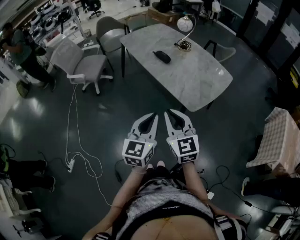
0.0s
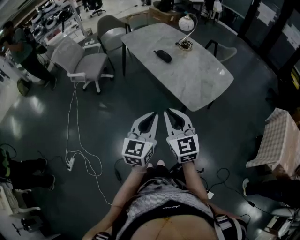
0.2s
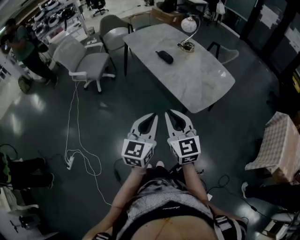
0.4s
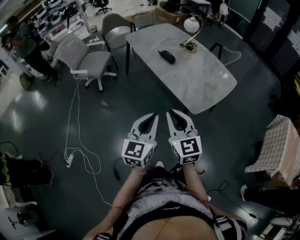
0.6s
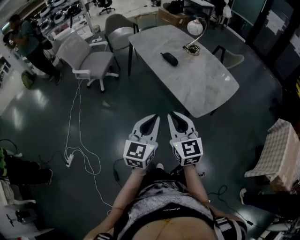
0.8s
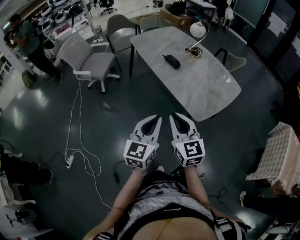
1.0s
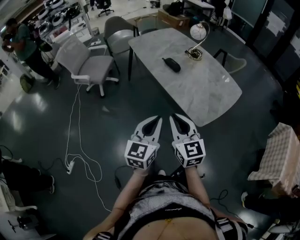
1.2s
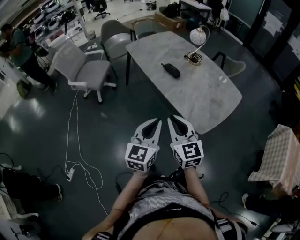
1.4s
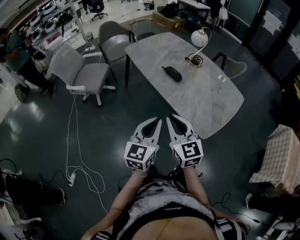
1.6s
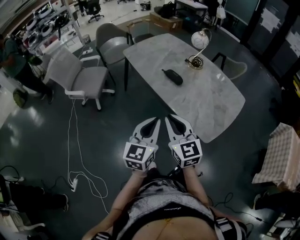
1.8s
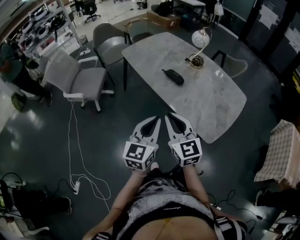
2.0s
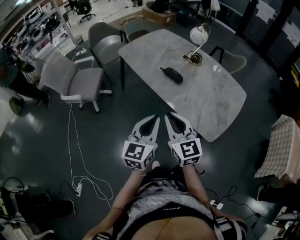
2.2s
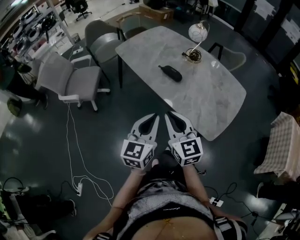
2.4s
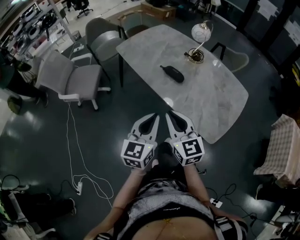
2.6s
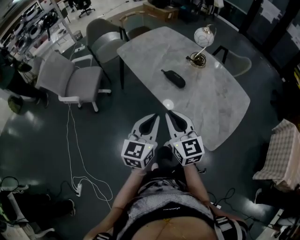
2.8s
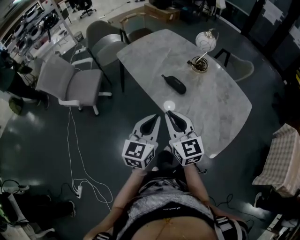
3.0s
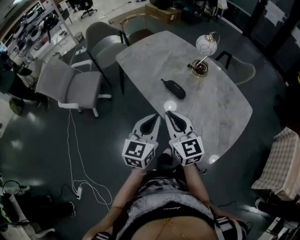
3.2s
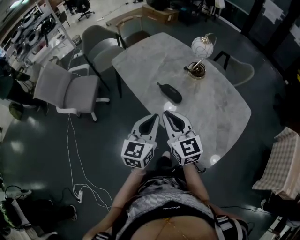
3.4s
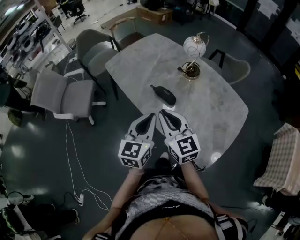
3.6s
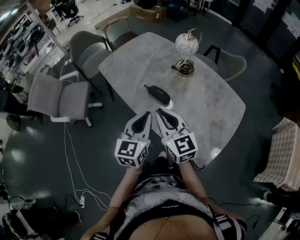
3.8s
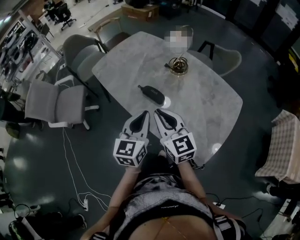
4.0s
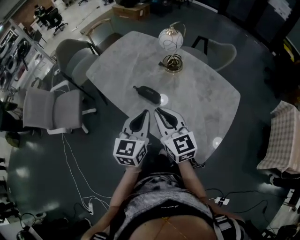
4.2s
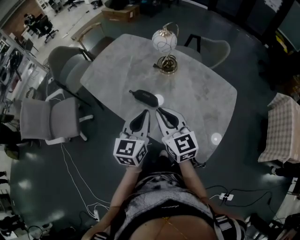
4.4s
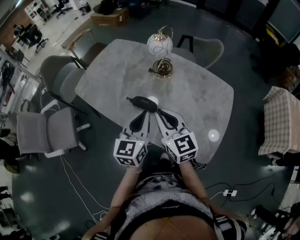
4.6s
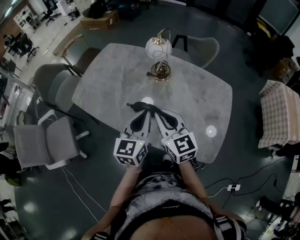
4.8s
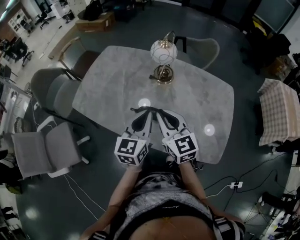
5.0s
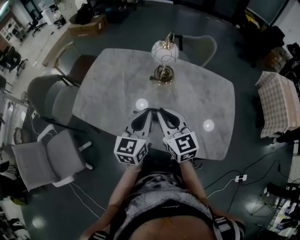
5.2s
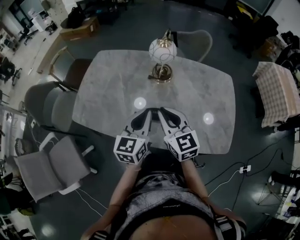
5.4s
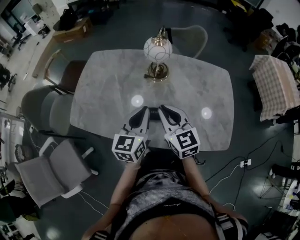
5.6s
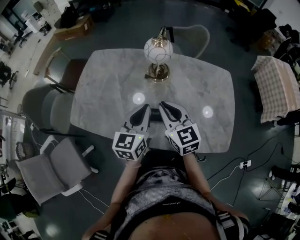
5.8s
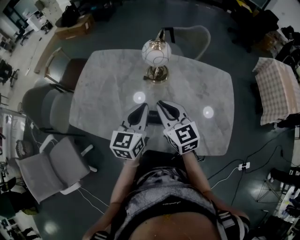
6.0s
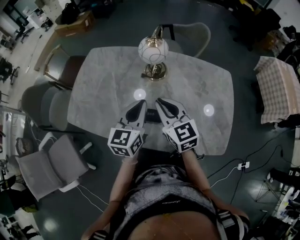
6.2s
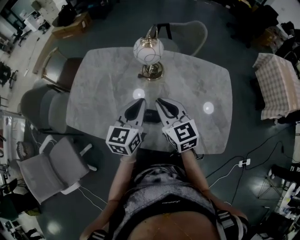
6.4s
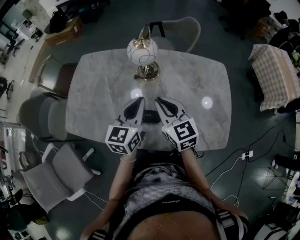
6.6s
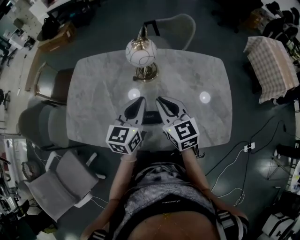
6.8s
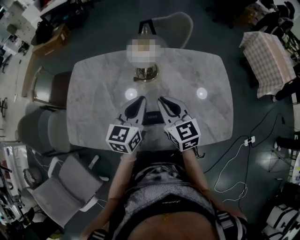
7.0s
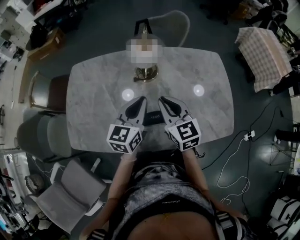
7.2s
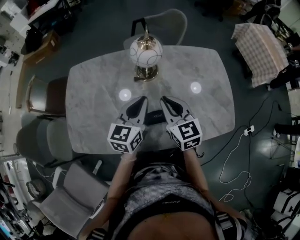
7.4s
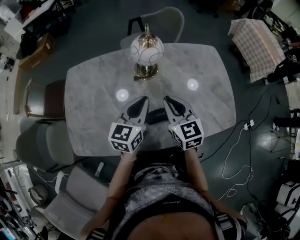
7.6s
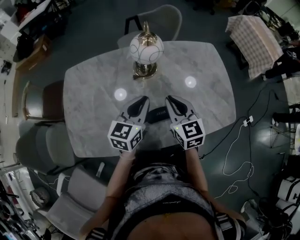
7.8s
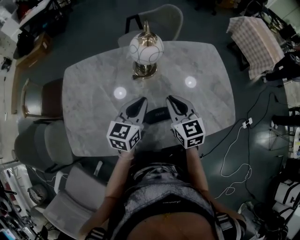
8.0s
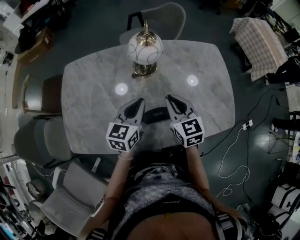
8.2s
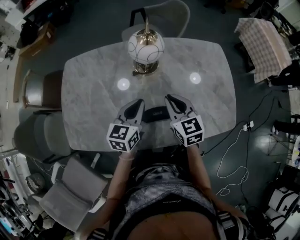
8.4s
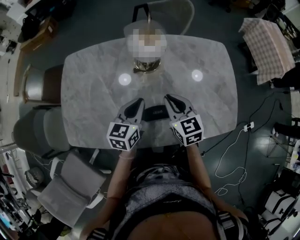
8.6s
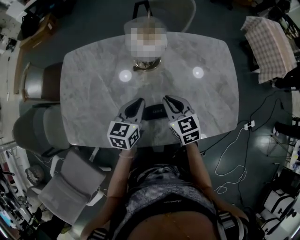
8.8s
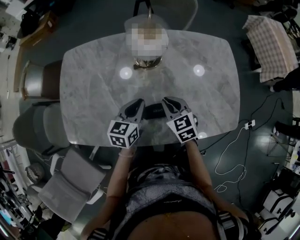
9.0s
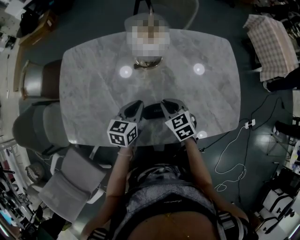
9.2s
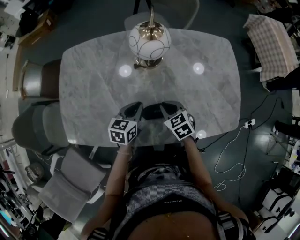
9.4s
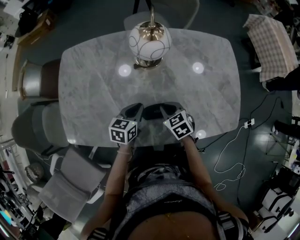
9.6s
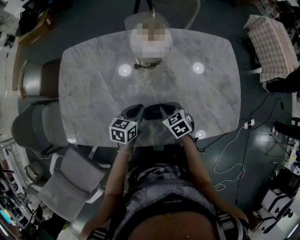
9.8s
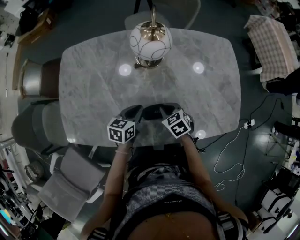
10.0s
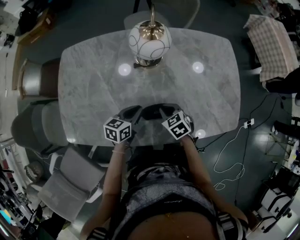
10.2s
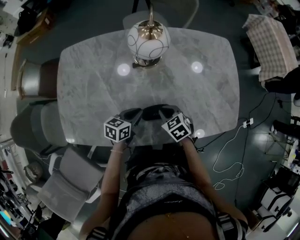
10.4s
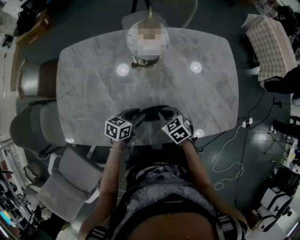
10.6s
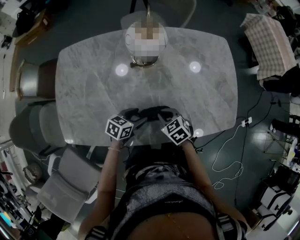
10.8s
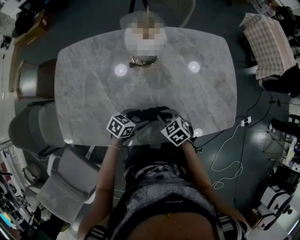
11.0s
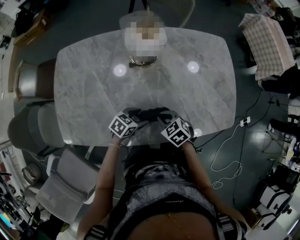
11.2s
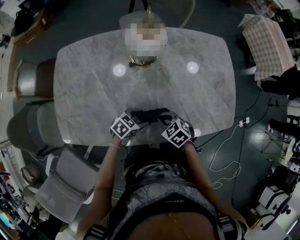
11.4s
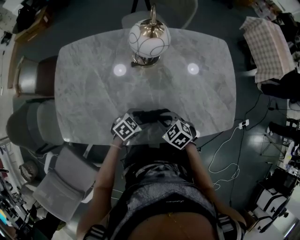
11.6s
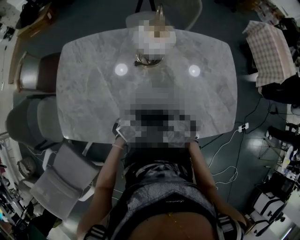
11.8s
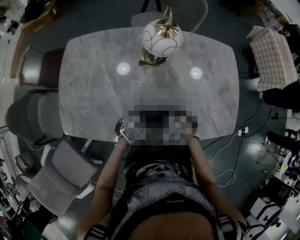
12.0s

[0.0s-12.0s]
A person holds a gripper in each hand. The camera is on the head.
0.0s to 1.6s: The two grippers go roughly 15 cm forward.
1.6s to 3.0s: The two grippers go roughly 20 cm forward.
3.0s to 4.4s: The two grippers go approximately 20 cm forward and to the right.
4.4s to 6.0s: The right gripper moves some 15 cm, and swivels some 20 degrees. The left gripper shifts by some 20 cm, and swivels roughly 30 degrees.
6.0s to 7.6s: The left gripper moves approximately 10 cm, and swivels approximately 30 degrees. The right gripper ends up some 5 cm from where it was, and turns by roughly 30 degrees.
7.6s to 9.0s: Both grippers move downward, about 10 cm. The right gripper rotates approximately 20 degrees.
9.0s to 10.4s: The grippers both shift downward by roughly 10 cm. The left gripper turns by approximately 20 degrees.
10.4s to 12.0s: The left gripper moves approximately 10 cm, turns by approximately 40 degrees, and opens its fingers; the right gripper moves roughly 5 cm, swivels about 40 degrees, and opens.

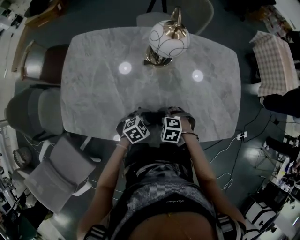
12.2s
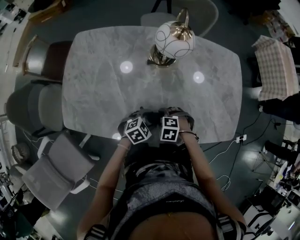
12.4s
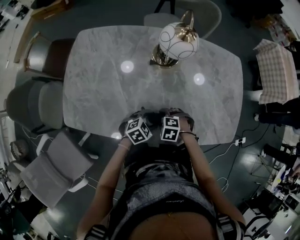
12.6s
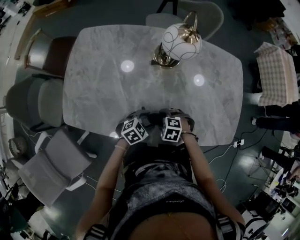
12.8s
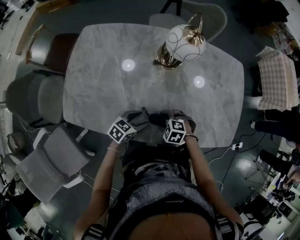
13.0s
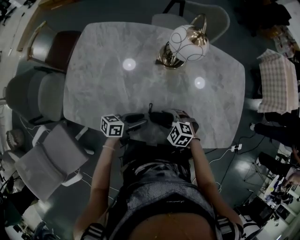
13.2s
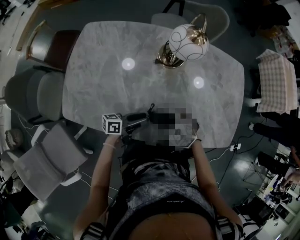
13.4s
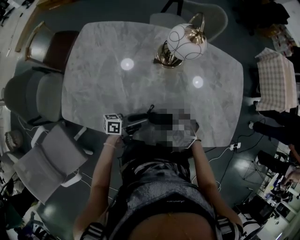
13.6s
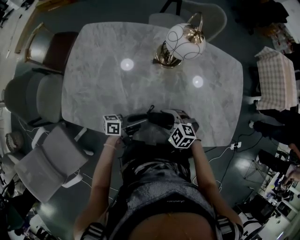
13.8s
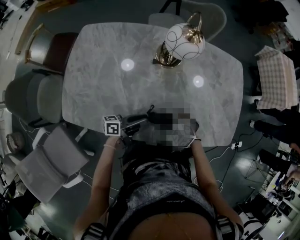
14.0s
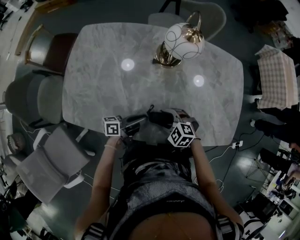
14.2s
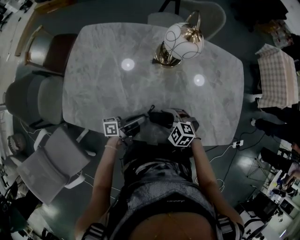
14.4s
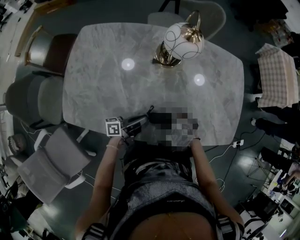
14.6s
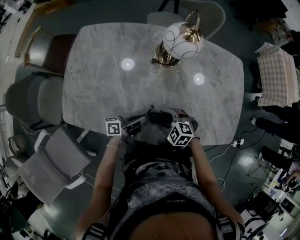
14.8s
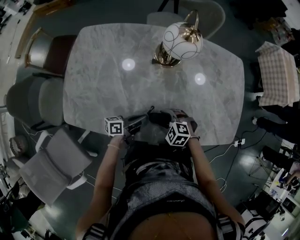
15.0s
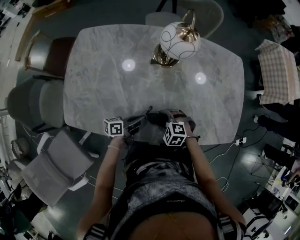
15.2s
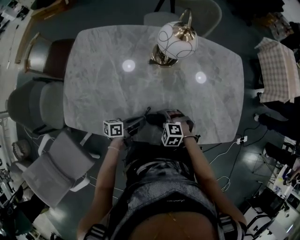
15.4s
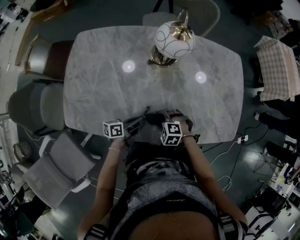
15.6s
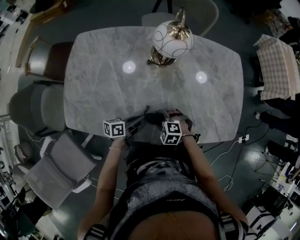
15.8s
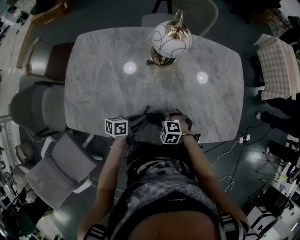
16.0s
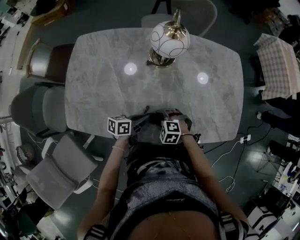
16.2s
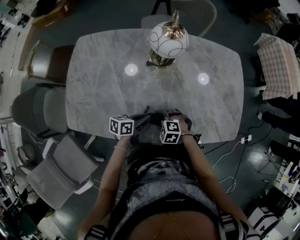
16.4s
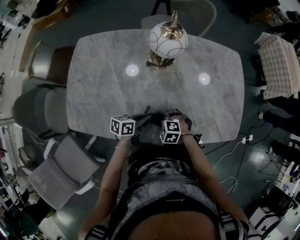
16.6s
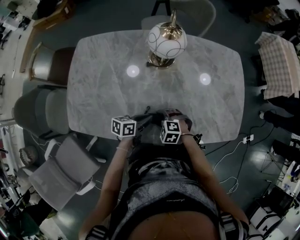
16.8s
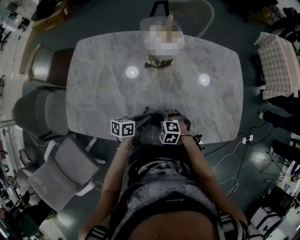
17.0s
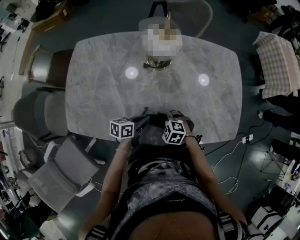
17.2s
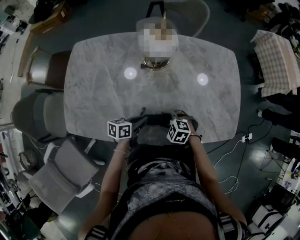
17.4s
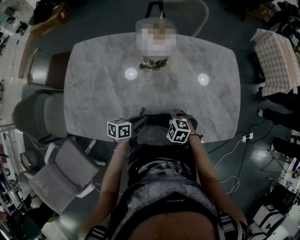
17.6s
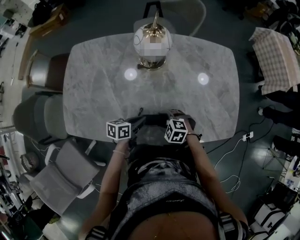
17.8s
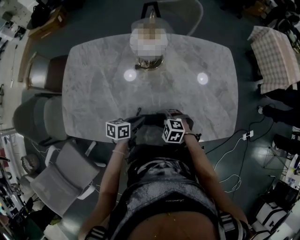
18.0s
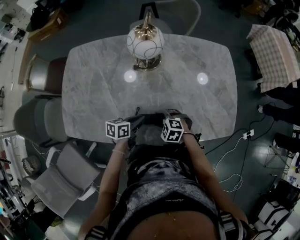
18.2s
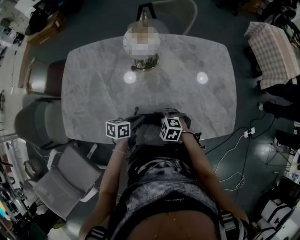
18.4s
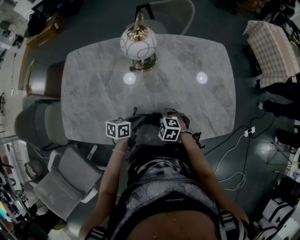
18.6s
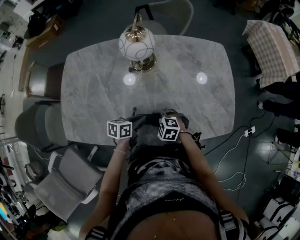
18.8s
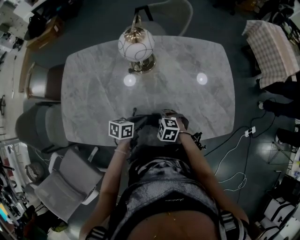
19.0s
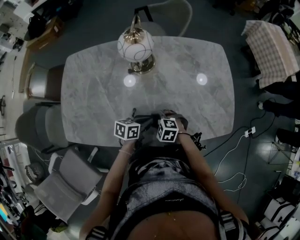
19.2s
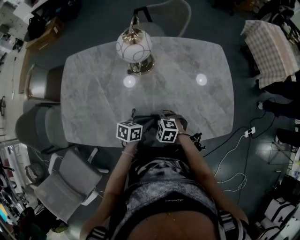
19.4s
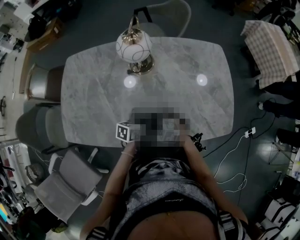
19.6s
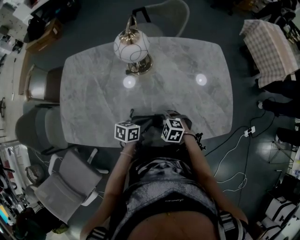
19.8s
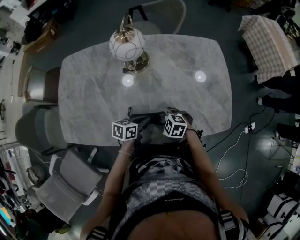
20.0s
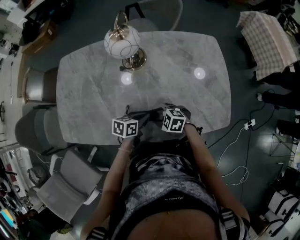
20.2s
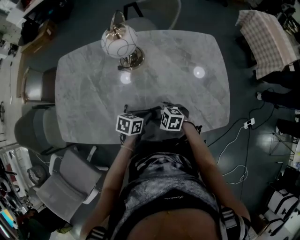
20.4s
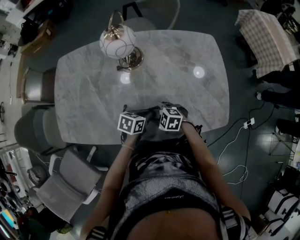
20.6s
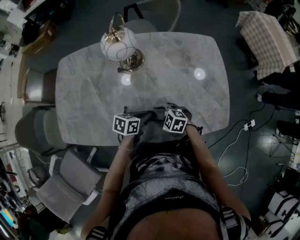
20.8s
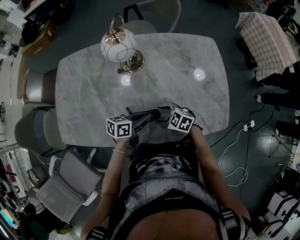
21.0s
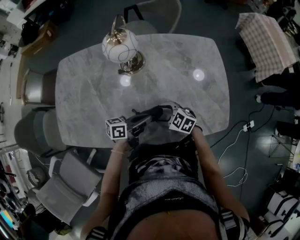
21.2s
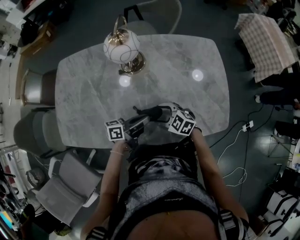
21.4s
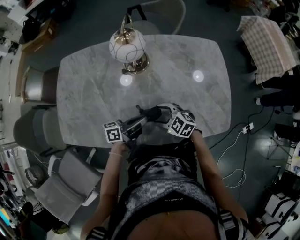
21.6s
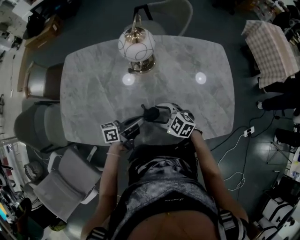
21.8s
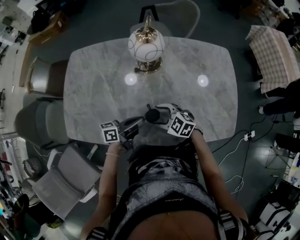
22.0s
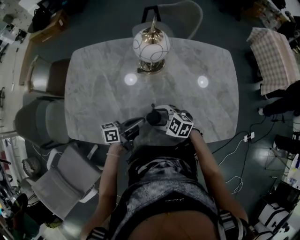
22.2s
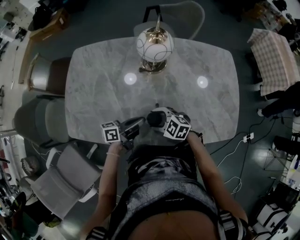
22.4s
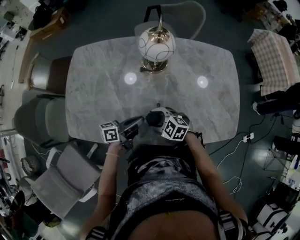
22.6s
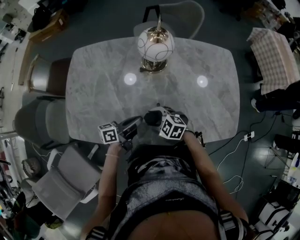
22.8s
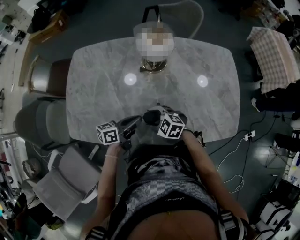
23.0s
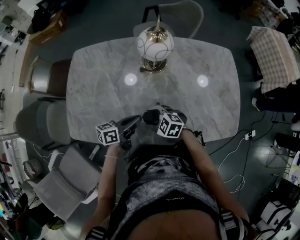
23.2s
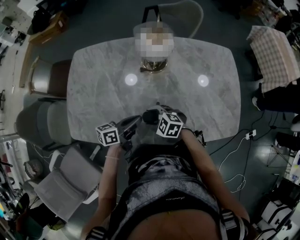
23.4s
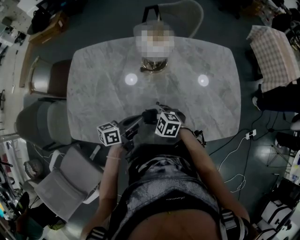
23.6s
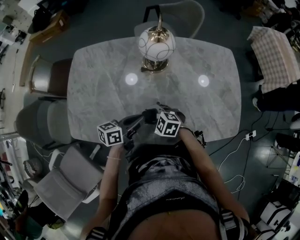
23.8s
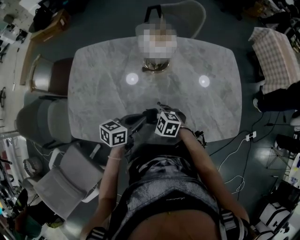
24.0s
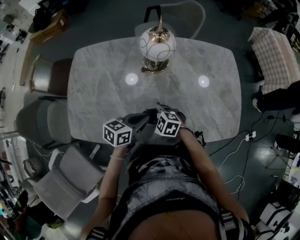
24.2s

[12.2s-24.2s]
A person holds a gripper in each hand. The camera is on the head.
12.2s to 13.8s: The left gripper heads upward, covering some 5 cm, and angles its fingers upward, by roughly 50 degrees; the right gripper turns by some 20 degrees.
13.8s to 15.2s: The left gripper closes.
15.2s to 16.6s: The left gripper swivels about 20 degrees.
16.6s to 18.2s: The grippers make only small movements.
18.2s to 19.8s: The left gripper shifts by roughly 5 cm.
19.8s to 21.2s: The left gripper moves upward, about 5 cm, and turns by about 30 degrees. Meanwhile the right gripper moves roughly 5 cm.
21.2s to 22.6s: The right gripper shifts by about 15 cm. Meanwhile the left gripper changes place by about 15 cm.
22.6s to 24.2s: The left gripper turns by roughly 30 degrees.
